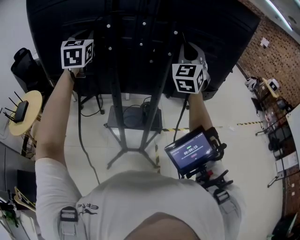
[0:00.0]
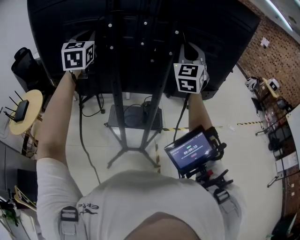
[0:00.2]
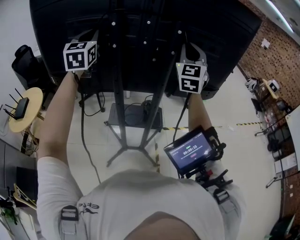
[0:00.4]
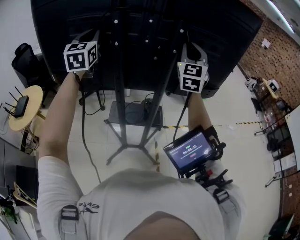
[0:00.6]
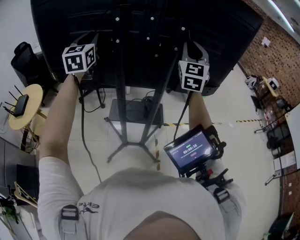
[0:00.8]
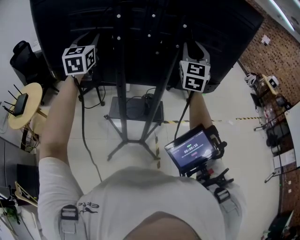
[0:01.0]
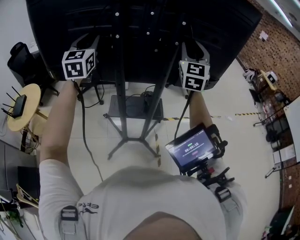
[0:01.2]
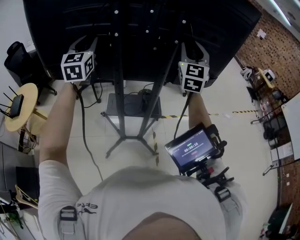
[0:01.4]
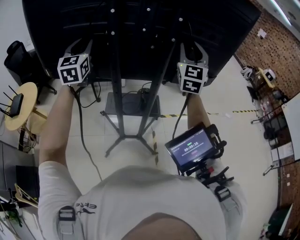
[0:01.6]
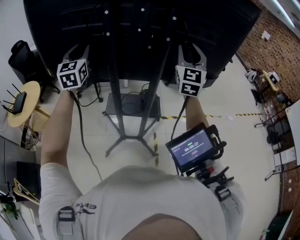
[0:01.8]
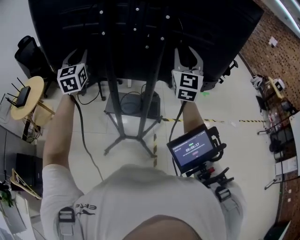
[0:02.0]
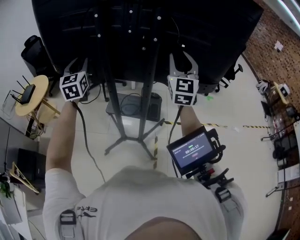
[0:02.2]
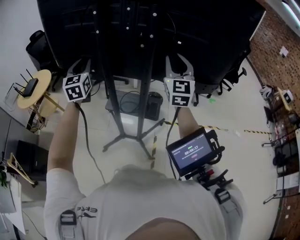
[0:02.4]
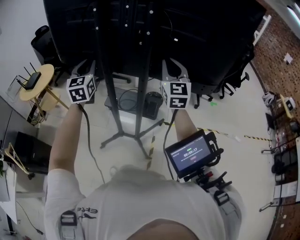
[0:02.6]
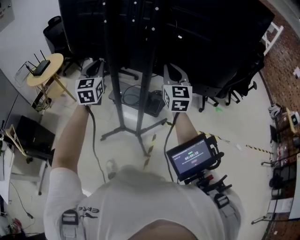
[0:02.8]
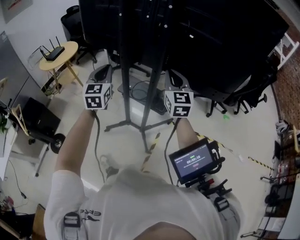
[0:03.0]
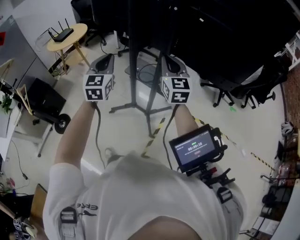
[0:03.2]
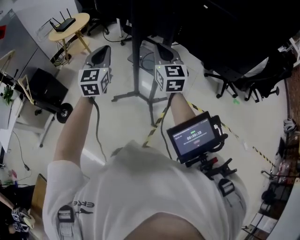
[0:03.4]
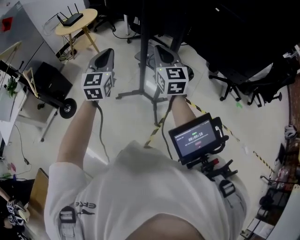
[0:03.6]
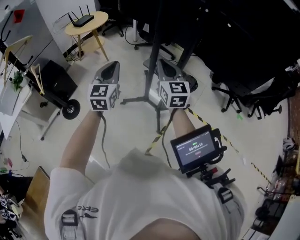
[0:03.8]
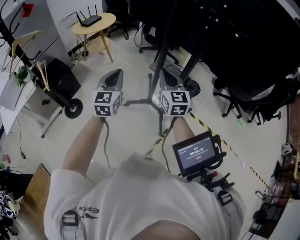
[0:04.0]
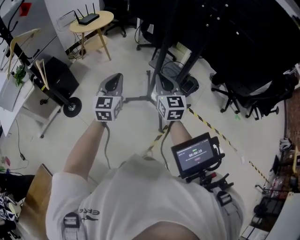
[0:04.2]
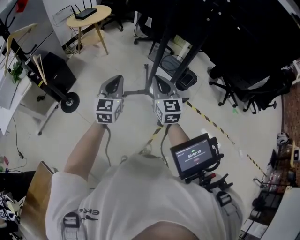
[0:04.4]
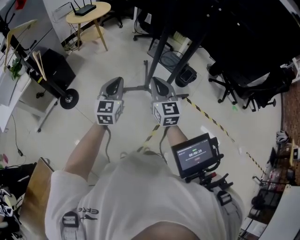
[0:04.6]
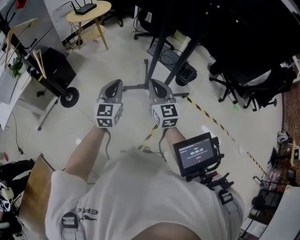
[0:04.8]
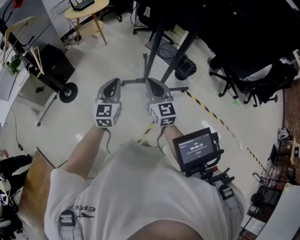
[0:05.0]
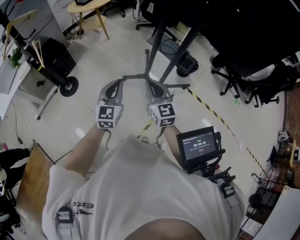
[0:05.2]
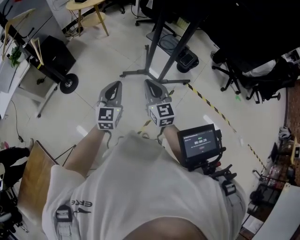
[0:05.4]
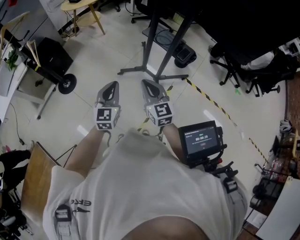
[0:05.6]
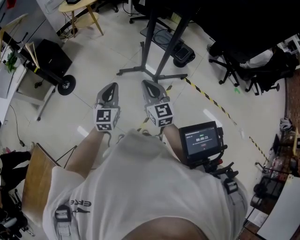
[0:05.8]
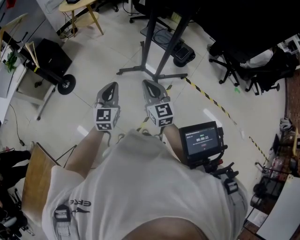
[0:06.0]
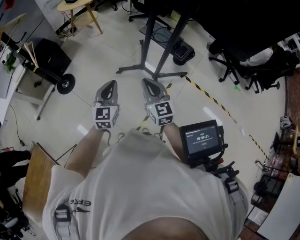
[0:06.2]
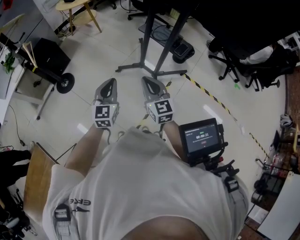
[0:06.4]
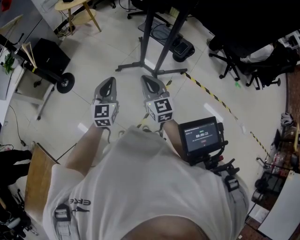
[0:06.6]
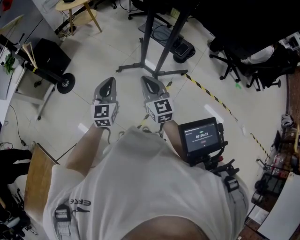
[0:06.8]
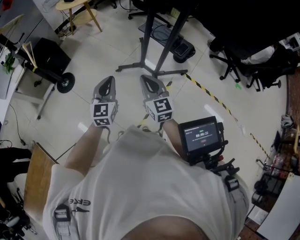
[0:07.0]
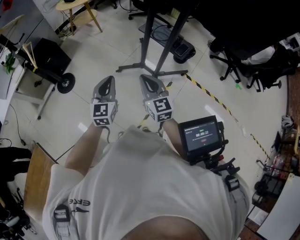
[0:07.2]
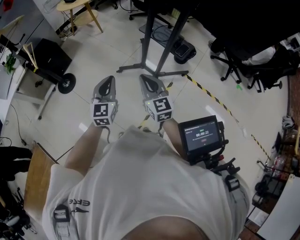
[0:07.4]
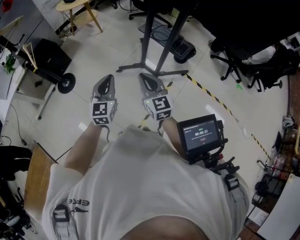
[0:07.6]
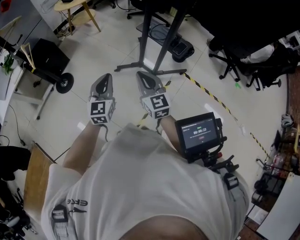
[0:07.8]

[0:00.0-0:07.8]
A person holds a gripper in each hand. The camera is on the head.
0:00.0 to 0:01.6: The left gripper shifts approximately 10 cm downward. The right gripper ends up about 5 cm from where it was, and opens up.
0:01.6 to 0:03.2: The right gripper moves downward, roughly 20 cm, rotates about 50 degrees, and closes its fingers. The left gripper changes place by some 35 cm, swivels roughly 30 degrees, and closes up.
0:03.2 to 0:04.6: The left gripper travels backward, to the left and downward by roughly 25 cm, while the right gripper travels to the left, backward and downward by roughly 25 cm.
0:04.6 to 0:06.2: Both grippers move backward and downward, about 15 cm.
0:06.2 to 0:07.8: The grippers stay close to where they were, moving slightly.

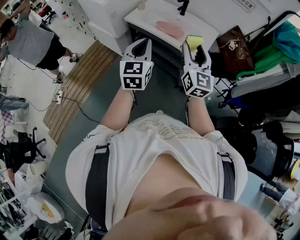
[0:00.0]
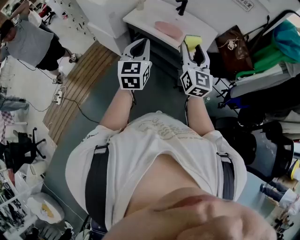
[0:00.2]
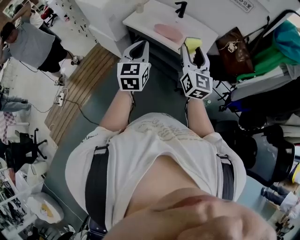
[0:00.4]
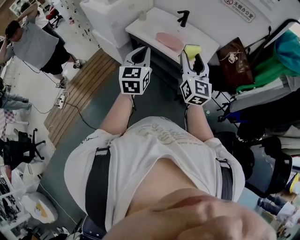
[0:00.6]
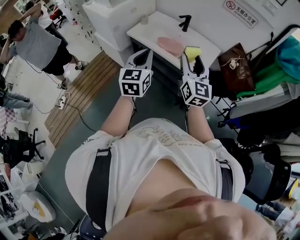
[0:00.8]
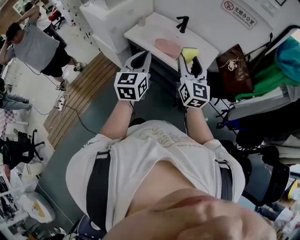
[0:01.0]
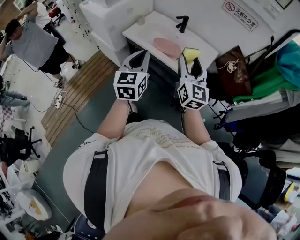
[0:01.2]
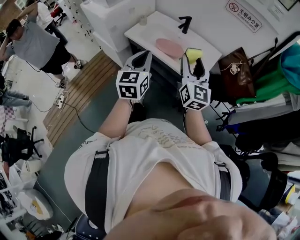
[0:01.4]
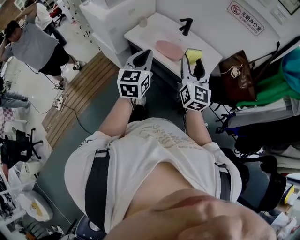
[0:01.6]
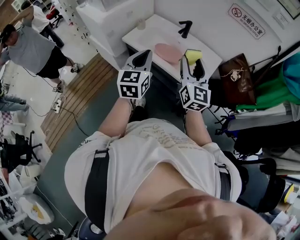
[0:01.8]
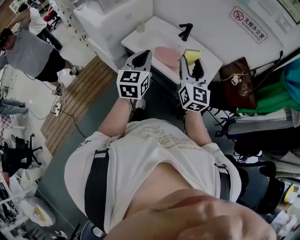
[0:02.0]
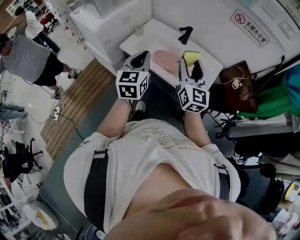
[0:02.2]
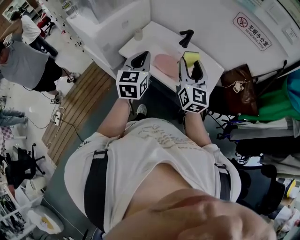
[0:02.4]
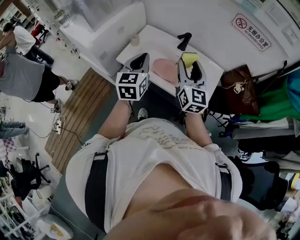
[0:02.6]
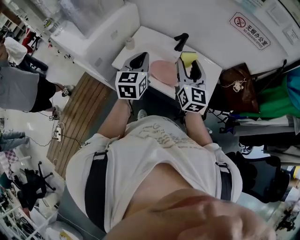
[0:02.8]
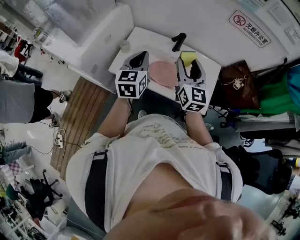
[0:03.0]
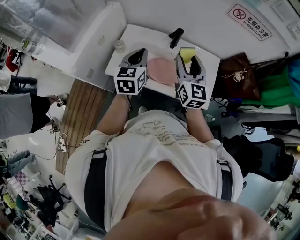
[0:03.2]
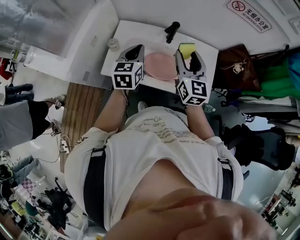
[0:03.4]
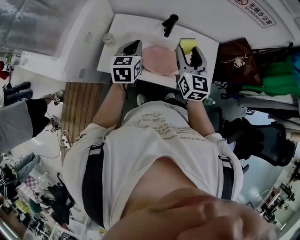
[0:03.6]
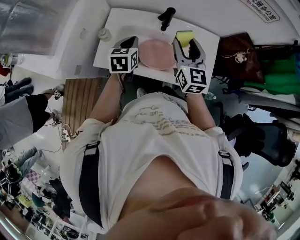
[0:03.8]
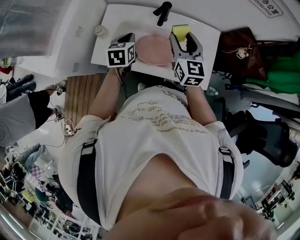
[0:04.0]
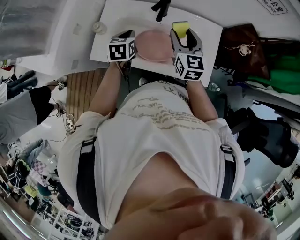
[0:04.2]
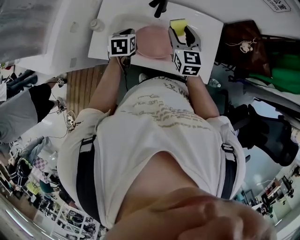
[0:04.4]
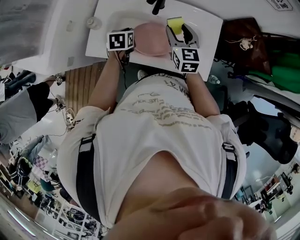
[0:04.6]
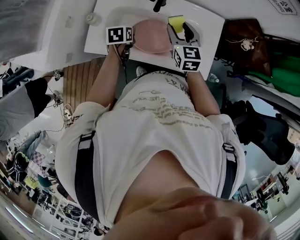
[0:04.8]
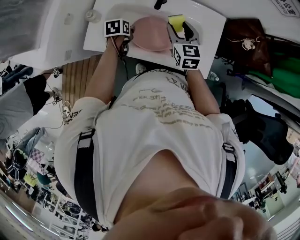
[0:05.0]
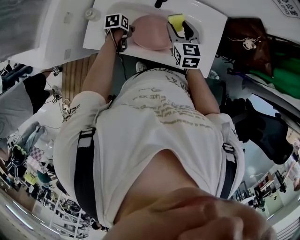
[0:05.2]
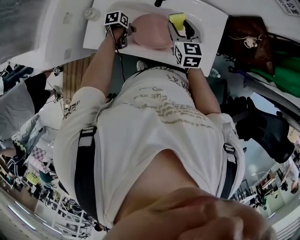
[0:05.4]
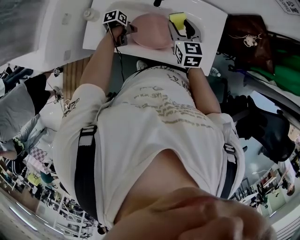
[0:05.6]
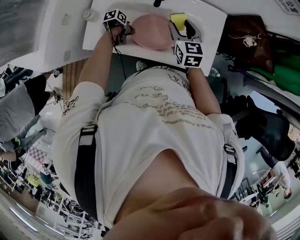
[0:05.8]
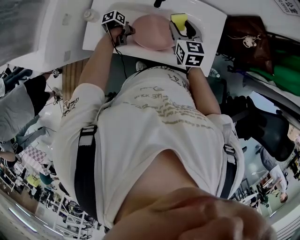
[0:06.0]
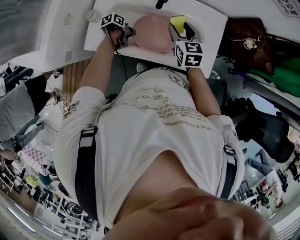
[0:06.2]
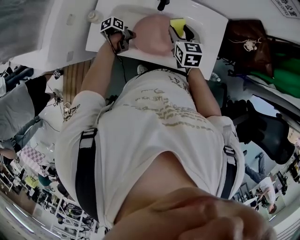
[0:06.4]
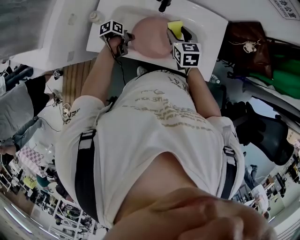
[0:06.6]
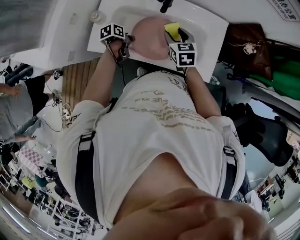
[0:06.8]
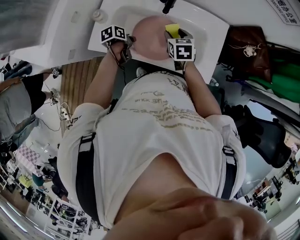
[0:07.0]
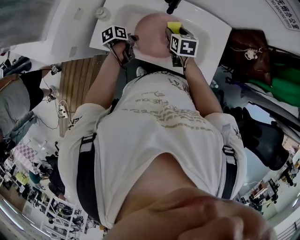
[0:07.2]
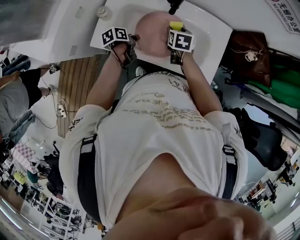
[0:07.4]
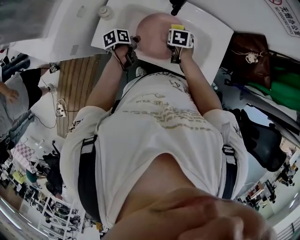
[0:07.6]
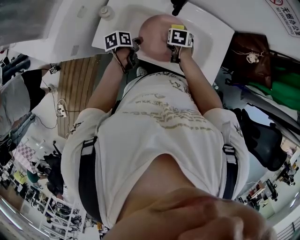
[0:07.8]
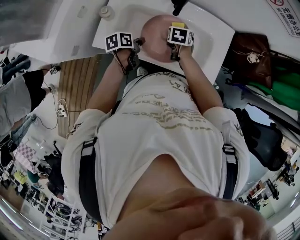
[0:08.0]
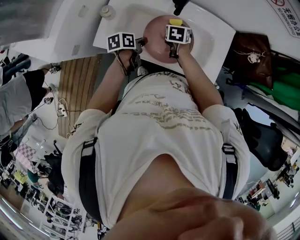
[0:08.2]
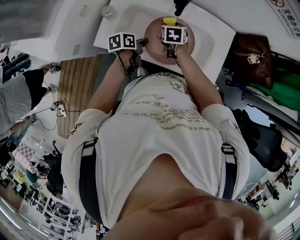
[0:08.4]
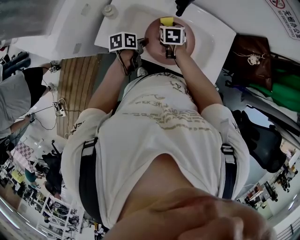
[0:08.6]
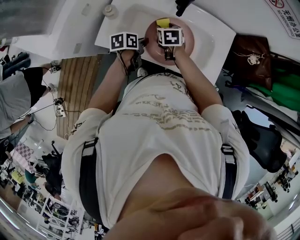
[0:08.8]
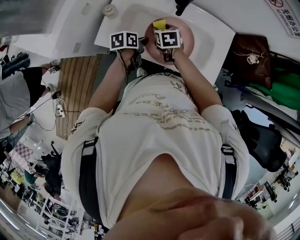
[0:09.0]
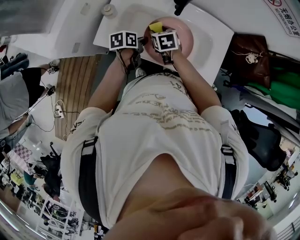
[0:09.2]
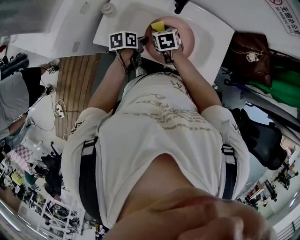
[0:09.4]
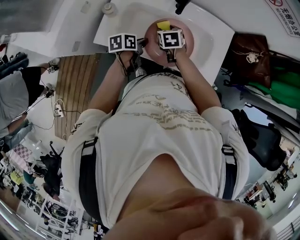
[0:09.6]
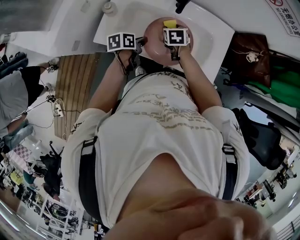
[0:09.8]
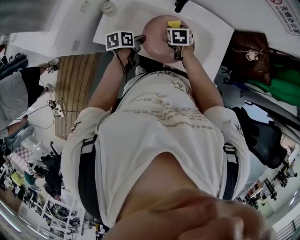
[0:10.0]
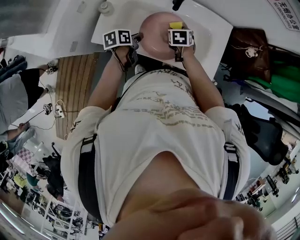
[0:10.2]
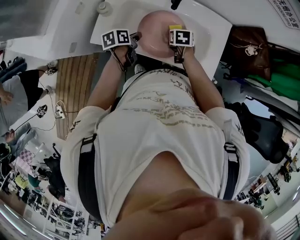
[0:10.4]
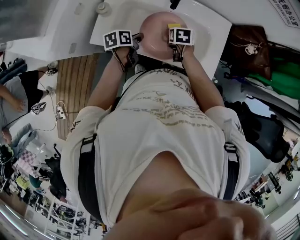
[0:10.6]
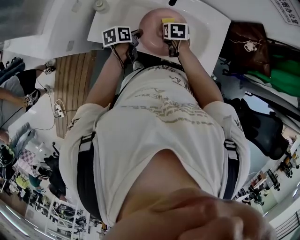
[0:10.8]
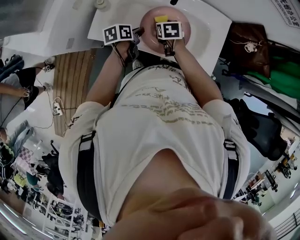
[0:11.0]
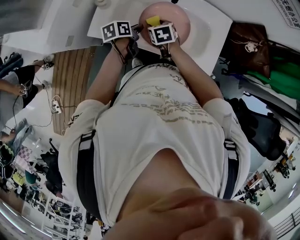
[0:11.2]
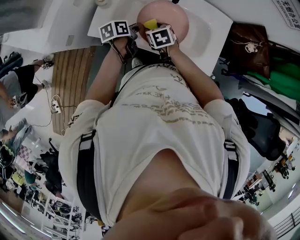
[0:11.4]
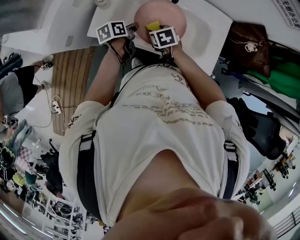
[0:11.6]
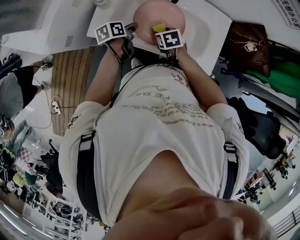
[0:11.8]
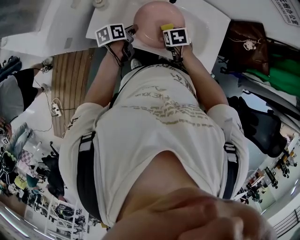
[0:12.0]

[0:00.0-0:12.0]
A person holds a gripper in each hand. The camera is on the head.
0:00.0 to 0:01.6: Both grippers travel together forward, about 10 cm.
0:01.6 to 0:03.0: Both grippers travel together forward, roughly 25 cm.
0:03.0 to 0:04.4: Both grippers move downward and forward, some 20 cm. The left gripper tilts its fingers approximately 40 degrees downward.
0:04.4 to 0:06.0: The right gripper shifts some 5 cm downward. The left gripper goes roughly 15 cm downward, rotates some 60 degrees, and opens and closes again.
0:06.0 to 0:07.6: The left gripper travels upward by approximately 5 cm, and turns by about 30 degrees. Meanwhile the right gripper moves downward, roughly 10 cm, and tilts its fingers roughly 30 degrees downward.
0:07.6 to 0:09.0: The right gripper travels to the left by roughly 10 cm.
0:09.0 to 0:10.4: The right gripper is displaced to the right by about 10 cm.
0:10.4 to 0:12.0: The right gripper moves about 10 cm to the left and comes back.

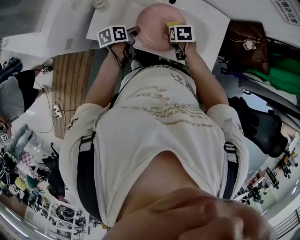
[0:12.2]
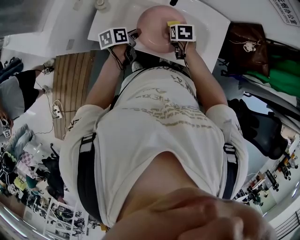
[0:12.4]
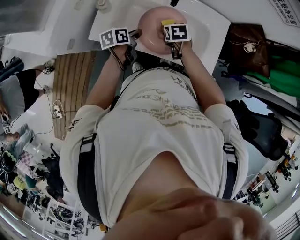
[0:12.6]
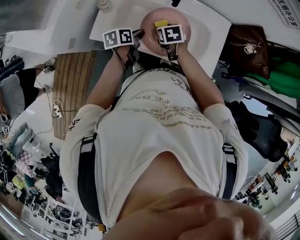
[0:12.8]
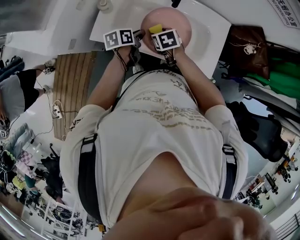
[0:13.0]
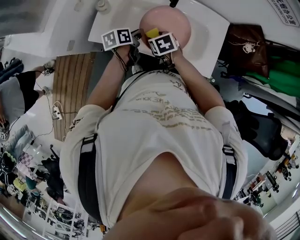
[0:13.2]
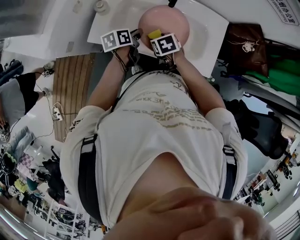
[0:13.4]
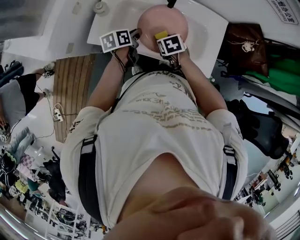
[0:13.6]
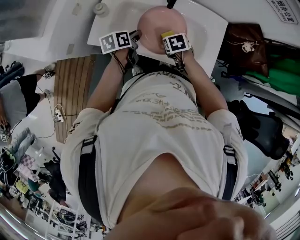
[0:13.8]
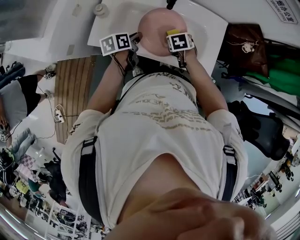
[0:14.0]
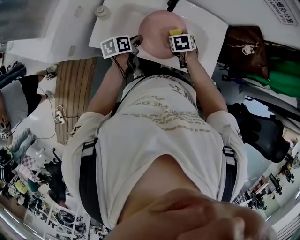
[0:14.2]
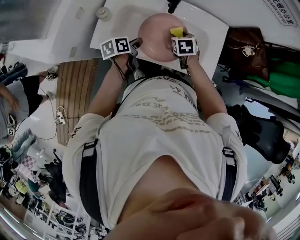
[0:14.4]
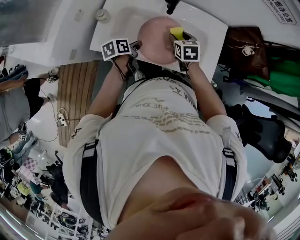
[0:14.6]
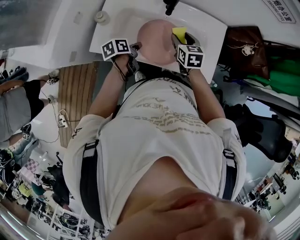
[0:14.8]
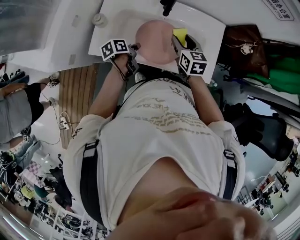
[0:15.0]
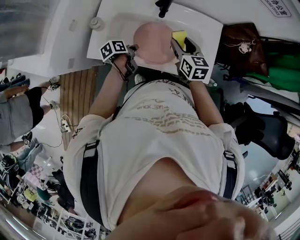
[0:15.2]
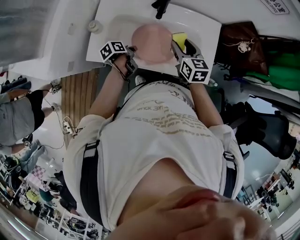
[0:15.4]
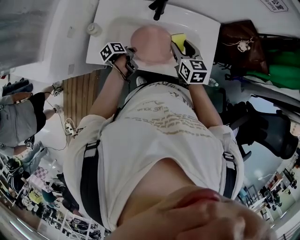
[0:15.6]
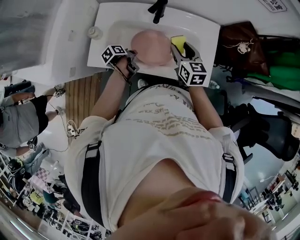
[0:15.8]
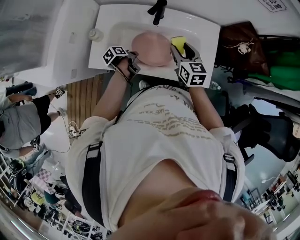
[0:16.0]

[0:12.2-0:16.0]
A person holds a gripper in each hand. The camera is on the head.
0:12.2 to 0:13.4: The right gripper goes approximately 10 cm to the left and backward.
0:13.4 to 0:14.8: The right gripper shifts roughly 15 cm to the right, forward and upward, and turns by some 30 degrees.
0:14.8 to 0:16.0: The right gripper shifts by about 5 cm. Meanwhile the left gripper moves downward, about 5 cm, and rotates some 20 degrees.
